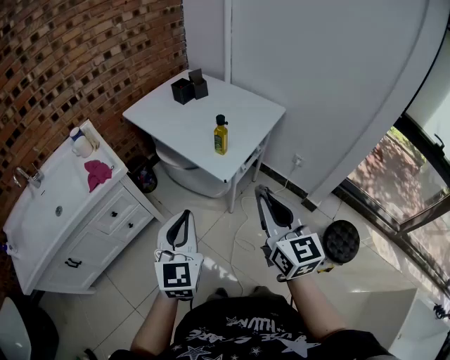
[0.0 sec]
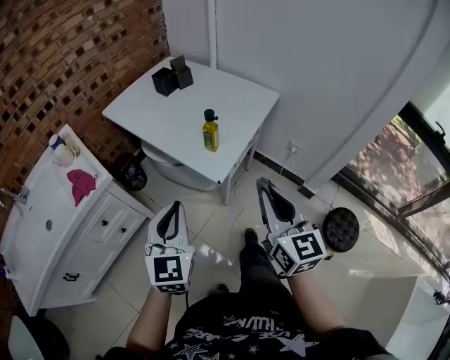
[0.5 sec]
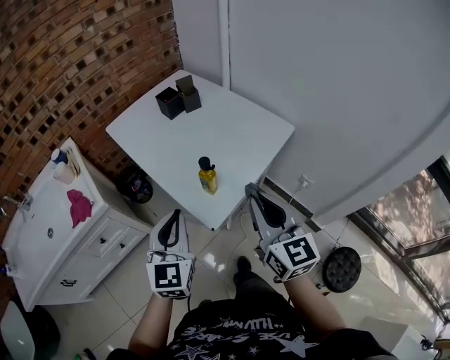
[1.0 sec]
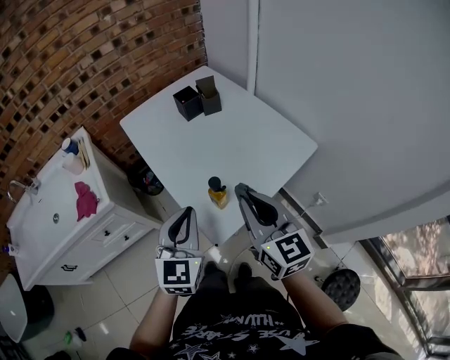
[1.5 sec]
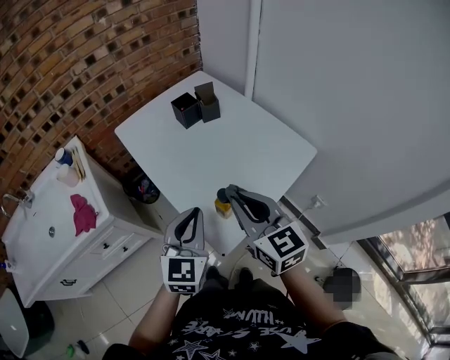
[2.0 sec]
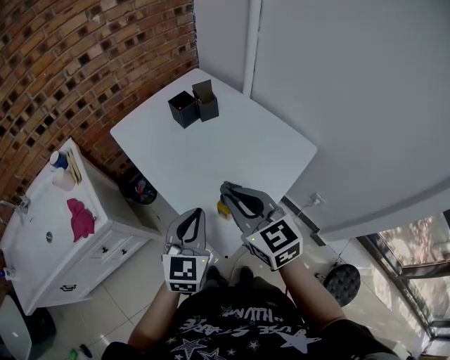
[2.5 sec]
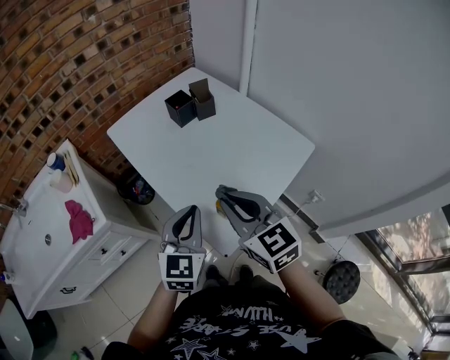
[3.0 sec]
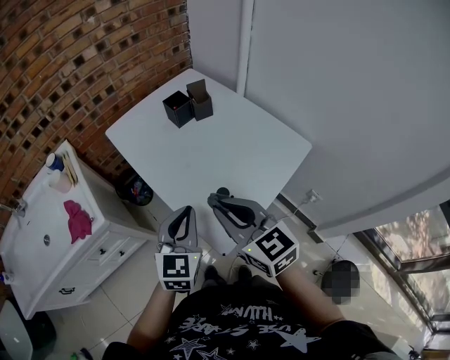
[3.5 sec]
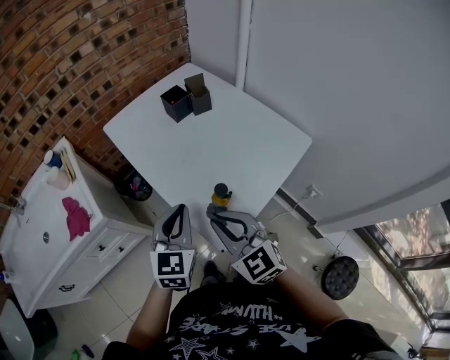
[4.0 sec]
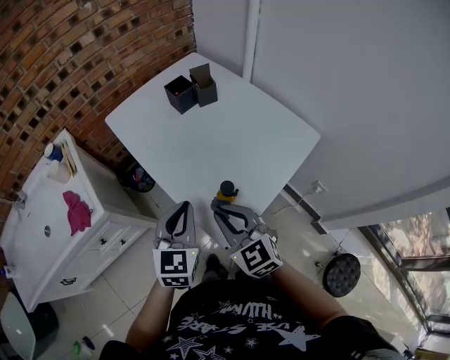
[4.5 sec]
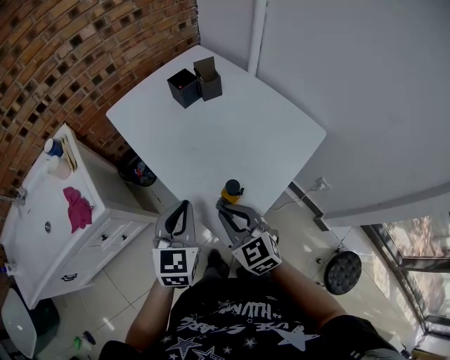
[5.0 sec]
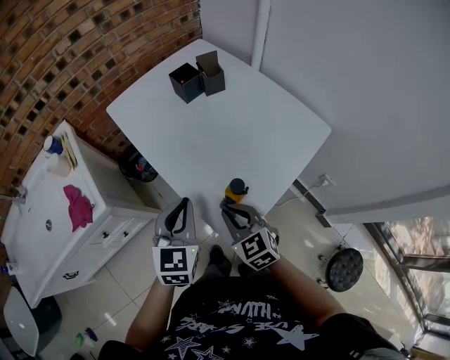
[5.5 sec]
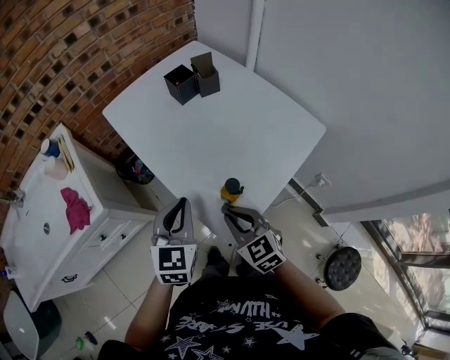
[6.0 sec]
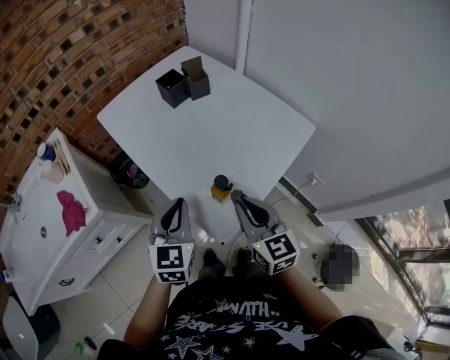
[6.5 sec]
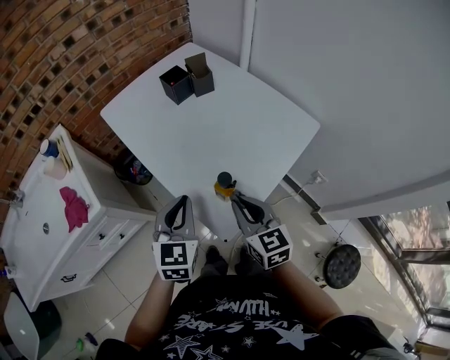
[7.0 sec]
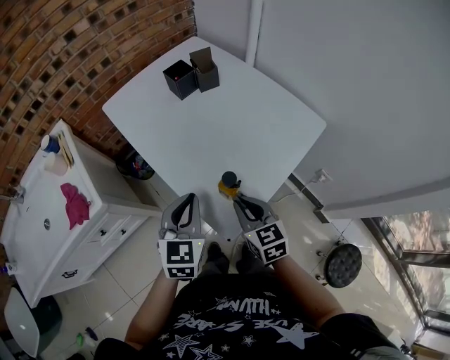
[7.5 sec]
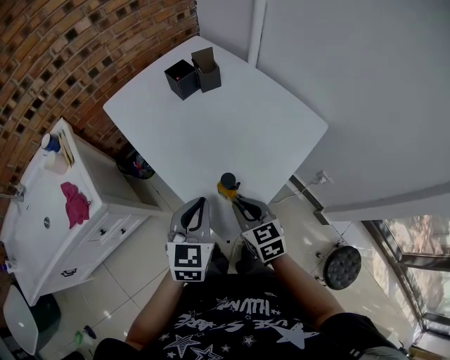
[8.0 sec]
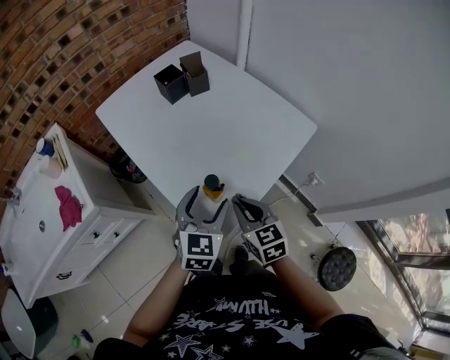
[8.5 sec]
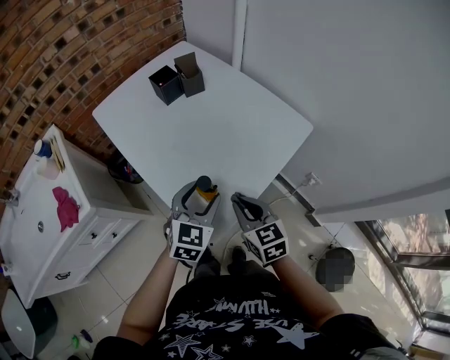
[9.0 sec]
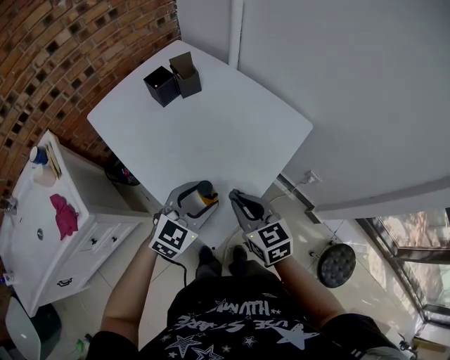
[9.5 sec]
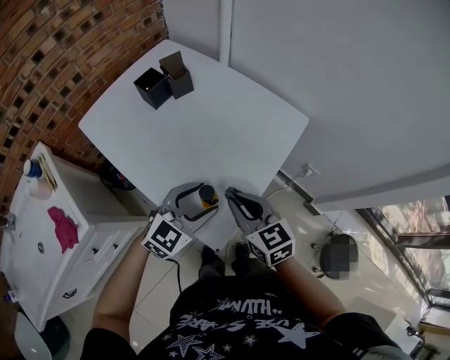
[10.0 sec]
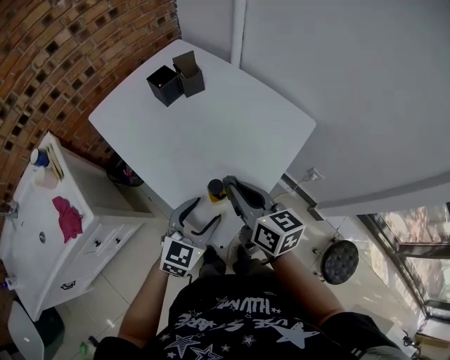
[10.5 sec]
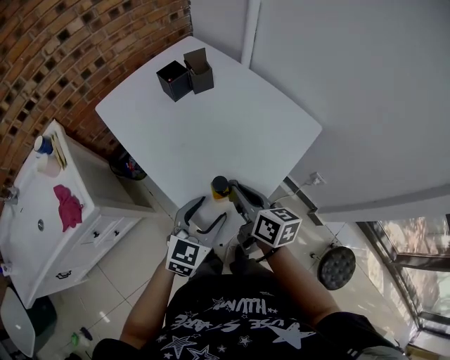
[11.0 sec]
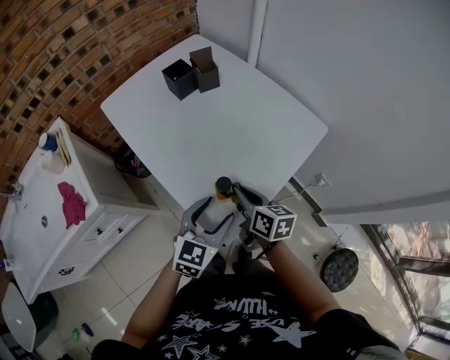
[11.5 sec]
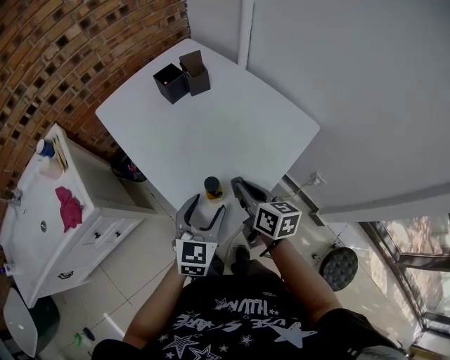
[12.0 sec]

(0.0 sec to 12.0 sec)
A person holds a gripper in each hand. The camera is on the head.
0.0 sec - 2.0 sec: Both grippers travel together forward, about 30 cm. The right gripper rotates roughly 30 degrees.
2.0 sec - 4.0 sec: The right gripper shifts approximately 10 cm to the left and downward, and turns by roughly 20 degrees.
4.0 sec - 6.0 sec: The right gripper is displaced downward by approximately 10 cm.
6.0 sec - 8.0 sec: The right gripper goes upward and returns, approximately 5 cm each way. The left gripper moves approximately 5 cm.
8.0 sec - 10.0 sec: The right gripper shifts roughly 5 cm upward, while the left gripper moves to the right, about 5 cm, changes its angle by some 50 degrees, and opens its fingers.
10.0 sec - 12.0 sec: The left gripper rotates some 40 degrees. The right gripper goes downward and returns, about 5 cm each way, and turns by some 30 degrees.

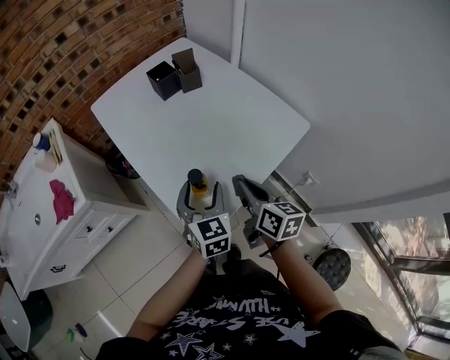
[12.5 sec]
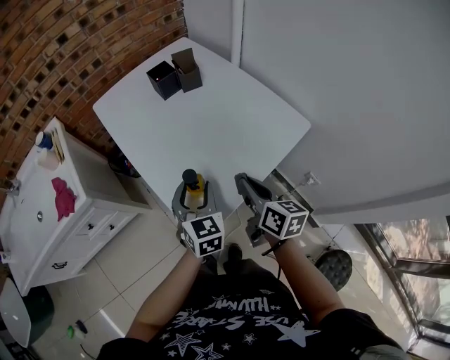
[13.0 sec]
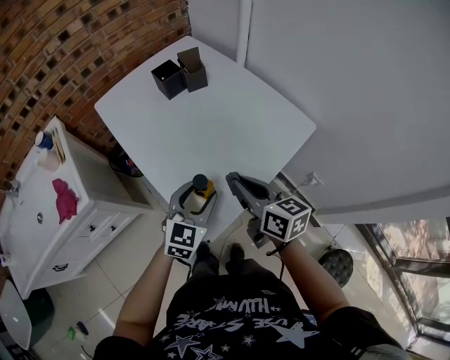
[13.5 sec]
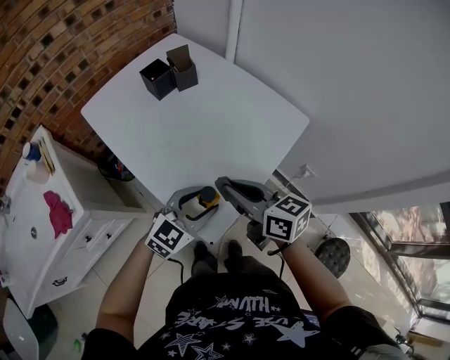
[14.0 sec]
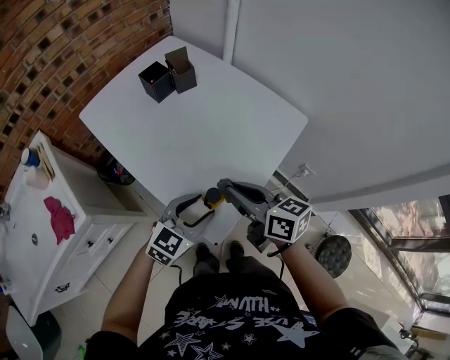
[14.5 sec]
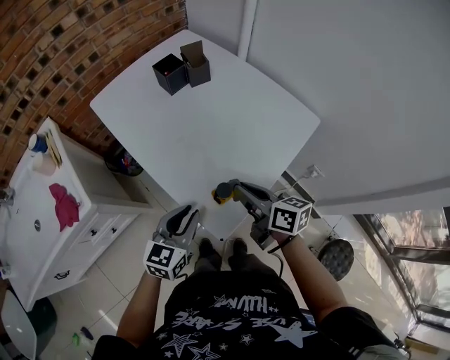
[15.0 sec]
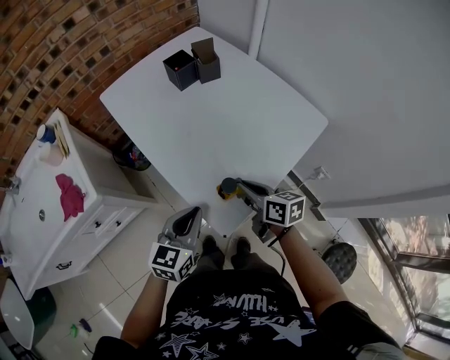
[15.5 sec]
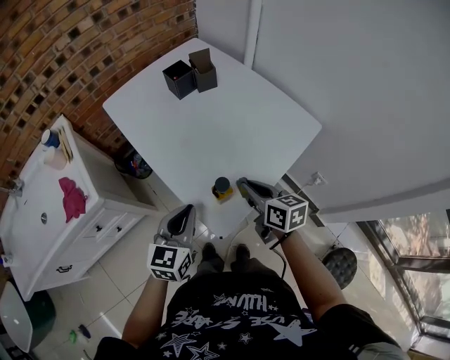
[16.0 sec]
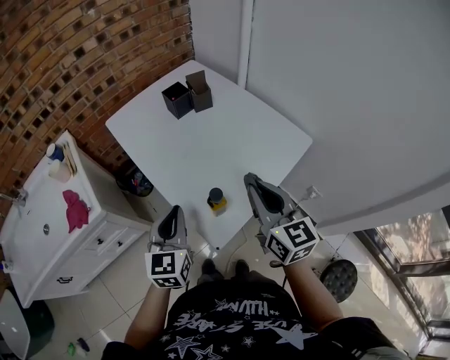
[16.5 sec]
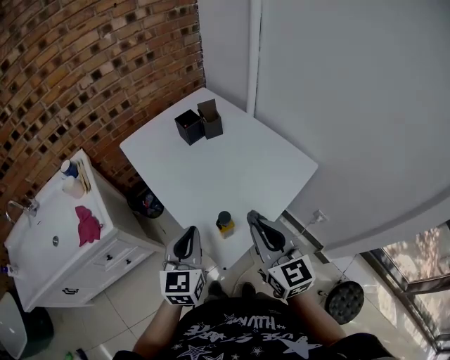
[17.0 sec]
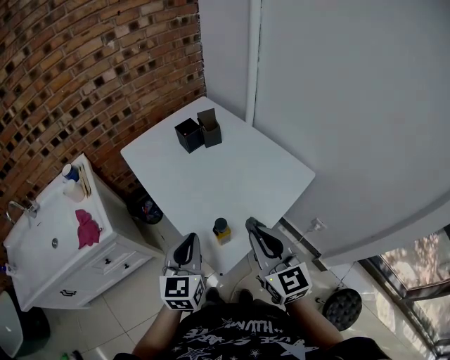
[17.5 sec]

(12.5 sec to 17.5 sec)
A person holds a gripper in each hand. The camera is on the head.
12.5 sec - 15.0 sec: The left gripper is displaced to the left and backward by approximately 10 cm, turns by about 40 degrees, and closes up. Meanwhile the right gripper shifts roughly 5 cm to the left.
15.0 sec - 17.5 sec: The grippers both shift upward by some 10 cm. The right gripper rolls counterclockwise, seen from behind, by about 40 degrees. The left gripper changes its angle by about 30 degrees.

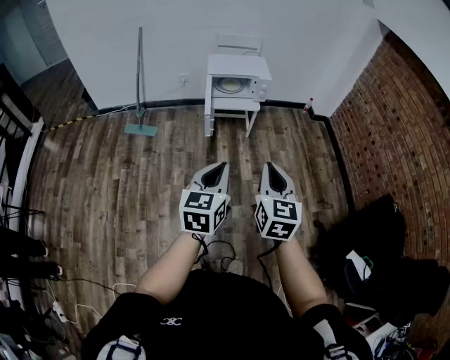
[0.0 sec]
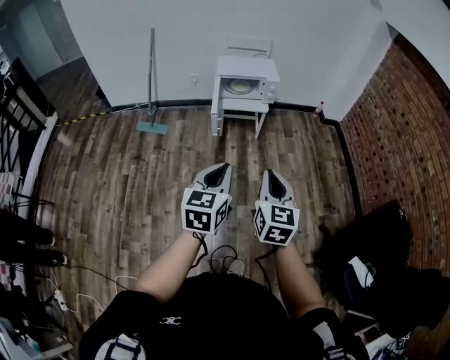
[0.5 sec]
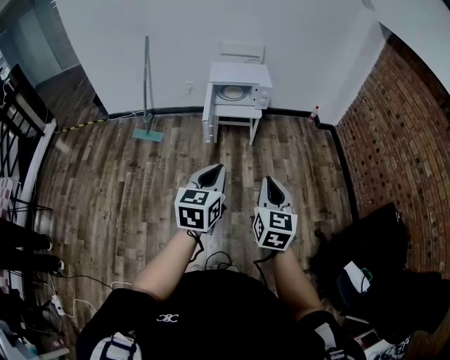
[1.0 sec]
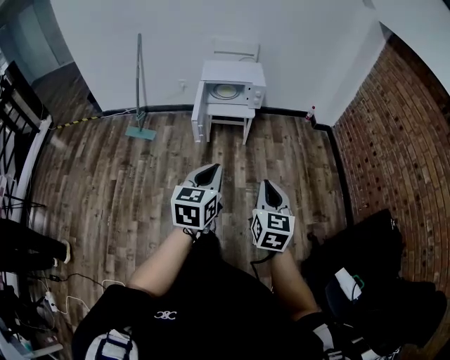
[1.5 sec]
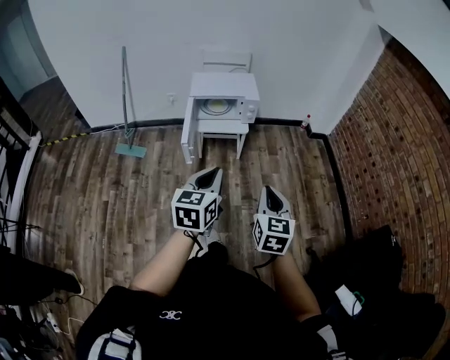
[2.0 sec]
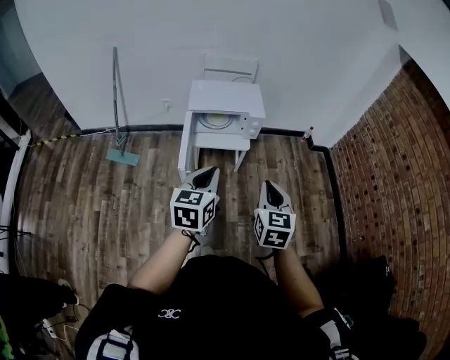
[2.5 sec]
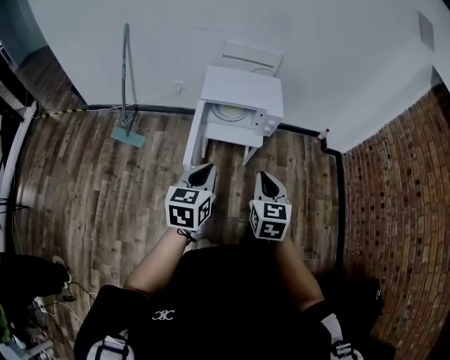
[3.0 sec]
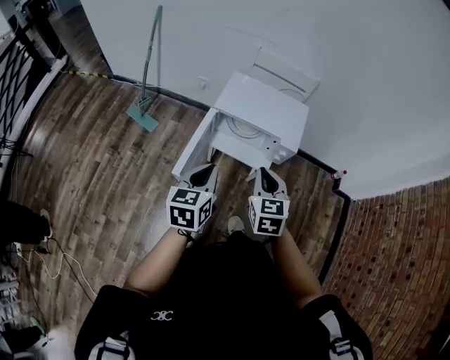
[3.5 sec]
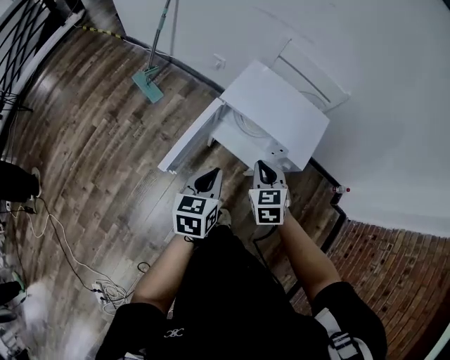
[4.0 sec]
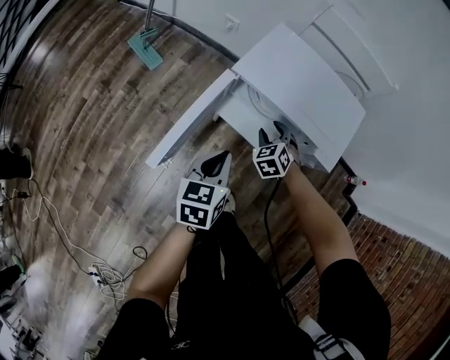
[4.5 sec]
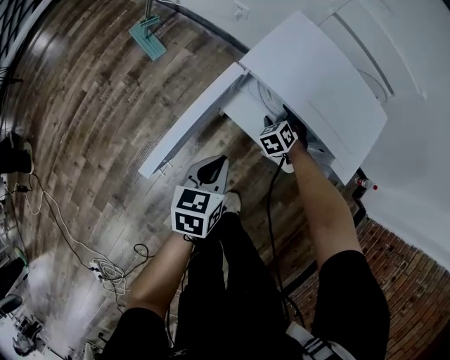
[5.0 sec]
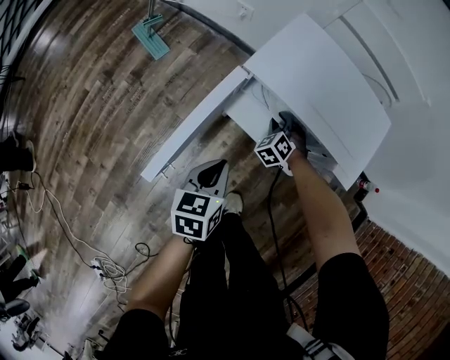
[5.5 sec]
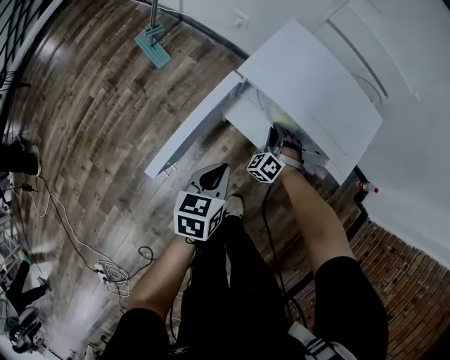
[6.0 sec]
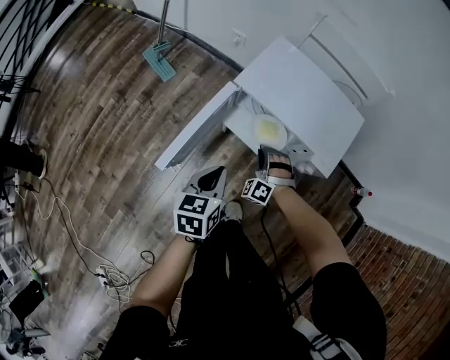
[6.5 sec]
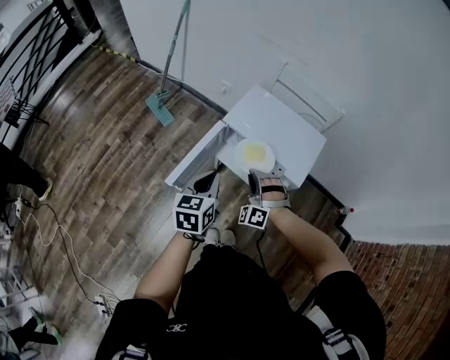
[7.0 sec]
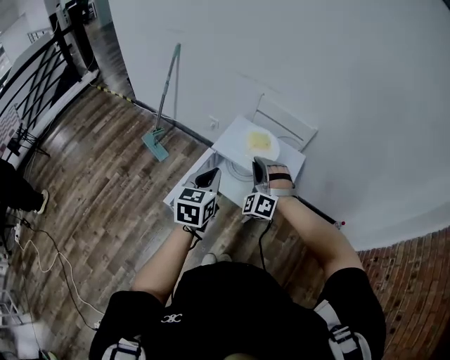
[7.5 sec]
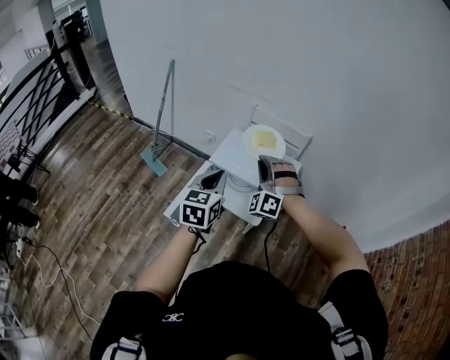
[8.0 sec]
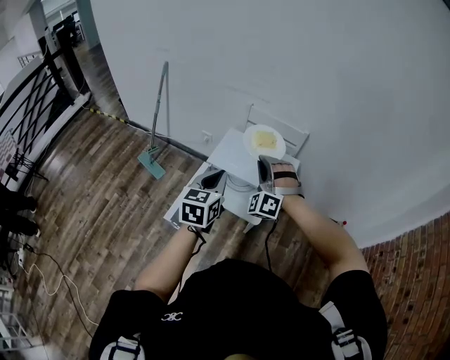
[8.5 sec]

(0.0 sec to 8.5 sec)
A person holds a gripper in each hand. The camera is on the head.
0.0 sec - 2.0 sec: The left gripper travels forward and to the right by about 20 cm. The right gripper travels forward, to the right and downward by some 20 cm.
2.0 sec - 4.0 sec: The pair of grippers is taken roughly 50 cm. The left gripper rotates some 40 degrees. The right gripper turns by about 50 degrees.
4.0 sec - 6.5 sec: The right gripper travels downward by approximately 25 cm, rotates around the line of its fingers by some 60 degrees, counterclockwise from behind, and opens, then closes again. The left gripper shifts approximately 10 cm downward.
6.5 sec - 8.5 sec: The left gripper goes some 25 cm upward, and changes its angle by about 30 degrees. The right gripper heads upward, covering roughly 40 cm, and rotates roughly 30 degrees.

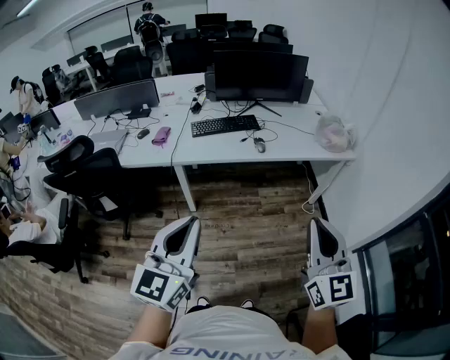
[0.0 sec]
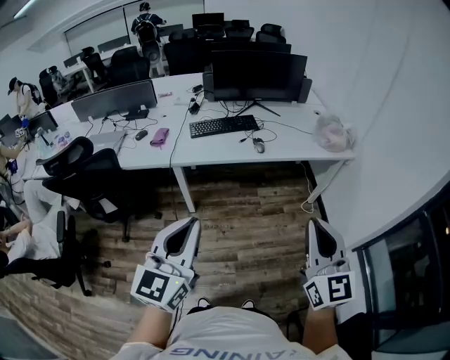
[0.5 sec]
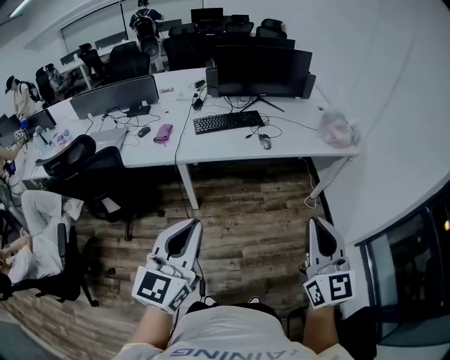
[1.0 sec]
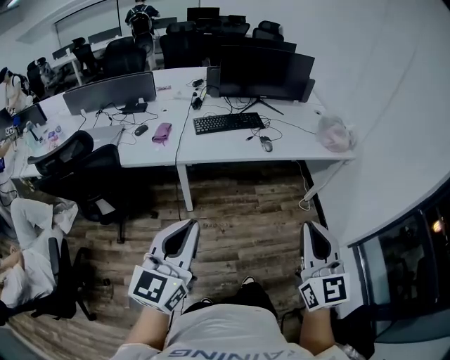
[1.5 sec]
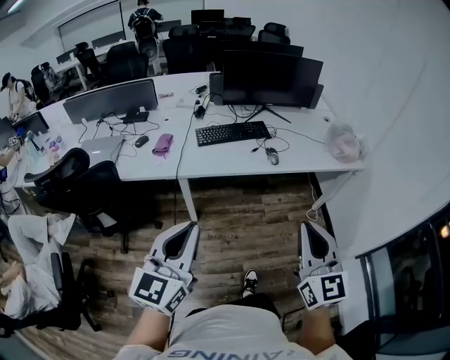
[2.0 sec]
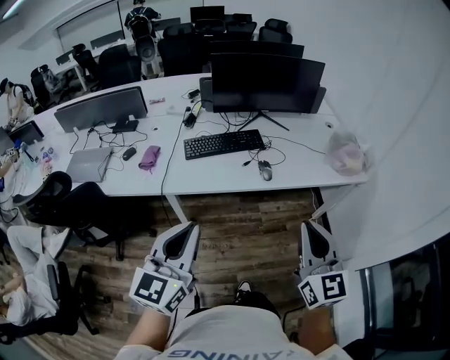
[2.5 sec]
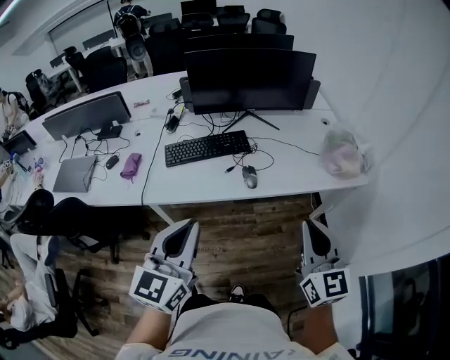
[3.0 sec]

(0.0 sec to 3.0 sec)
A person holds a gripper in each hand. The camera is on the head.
0.0 sec - 1.5 sec: The grippers both shift to the left by roughly 10 cm.
1.5 sec - 3.0 sec: The two grippers go about 35 cm forward and to the right.
